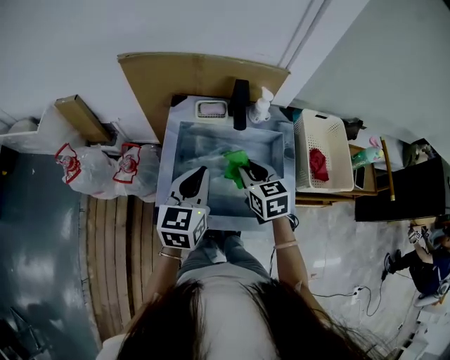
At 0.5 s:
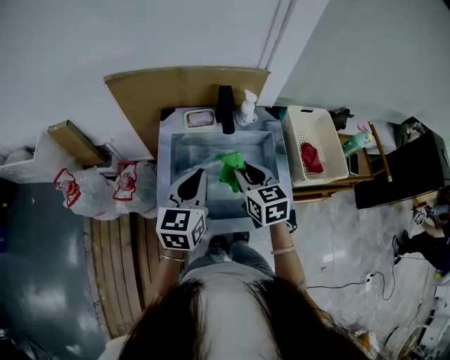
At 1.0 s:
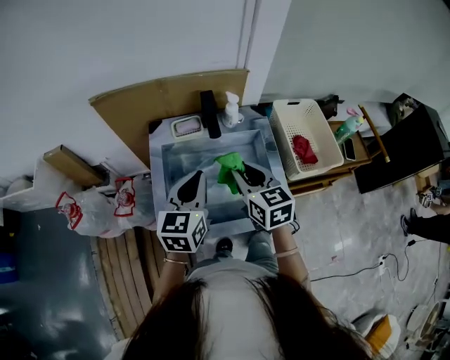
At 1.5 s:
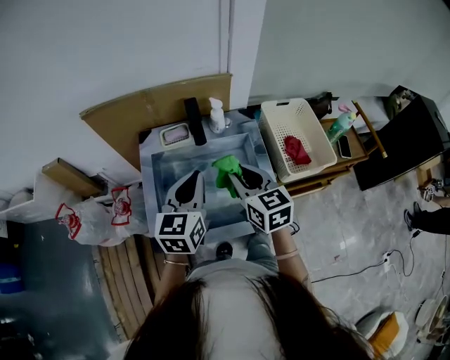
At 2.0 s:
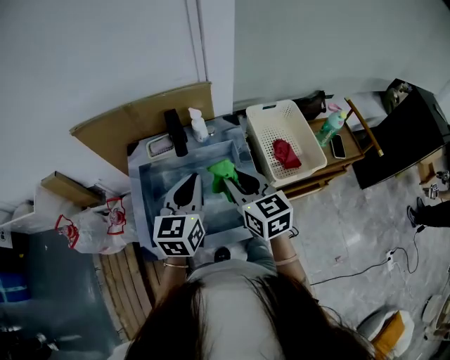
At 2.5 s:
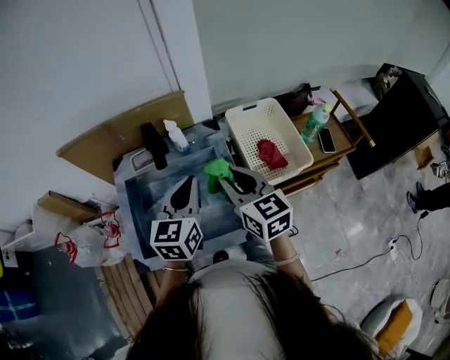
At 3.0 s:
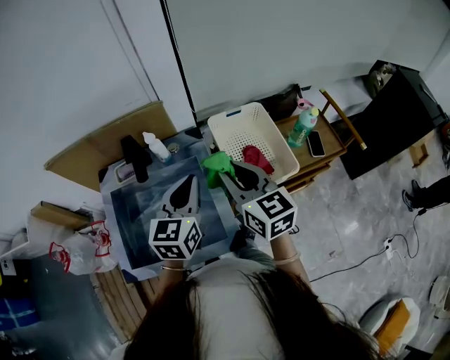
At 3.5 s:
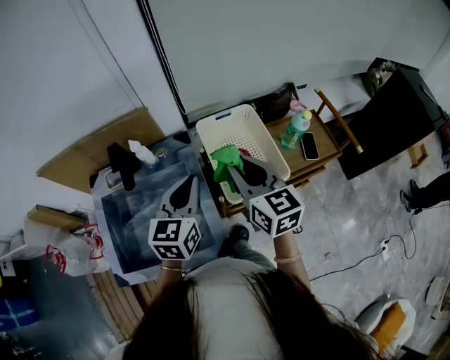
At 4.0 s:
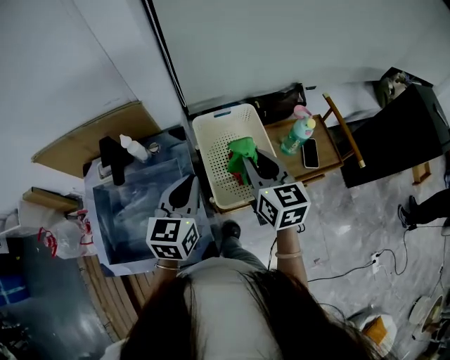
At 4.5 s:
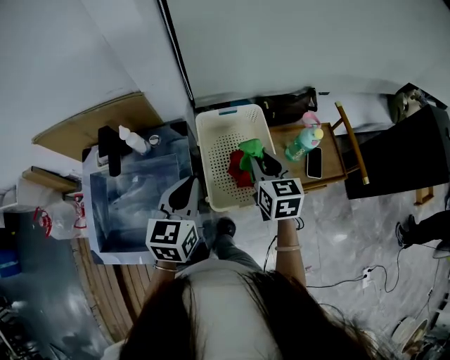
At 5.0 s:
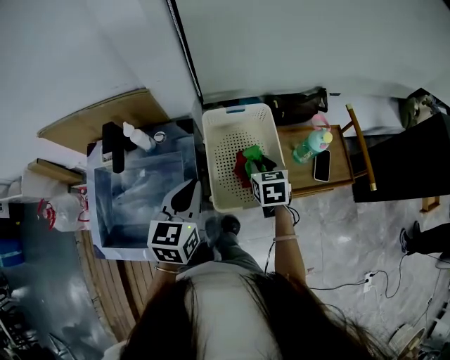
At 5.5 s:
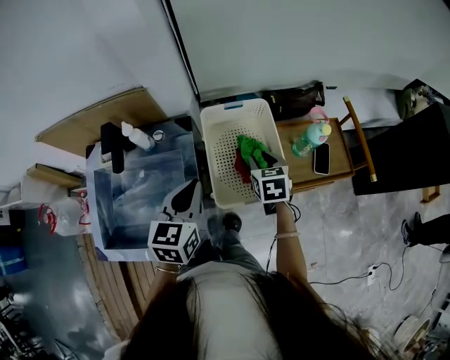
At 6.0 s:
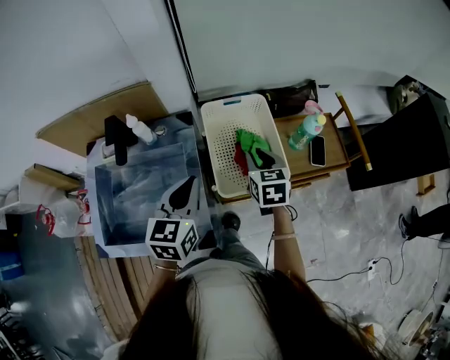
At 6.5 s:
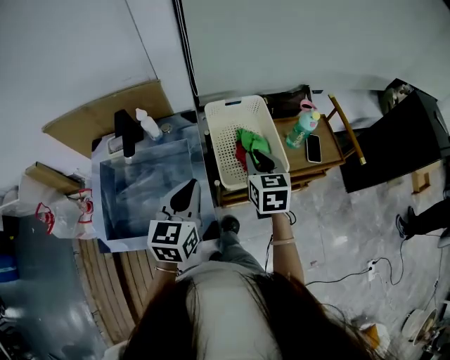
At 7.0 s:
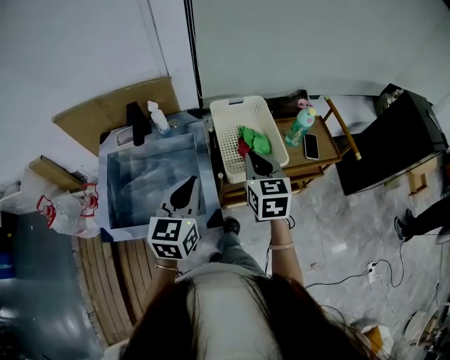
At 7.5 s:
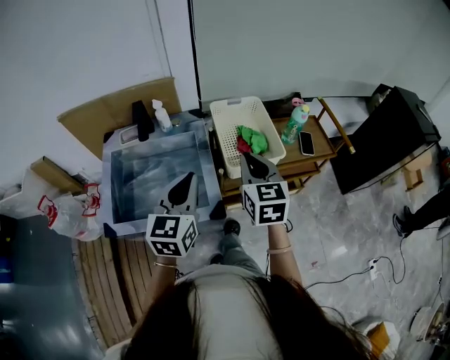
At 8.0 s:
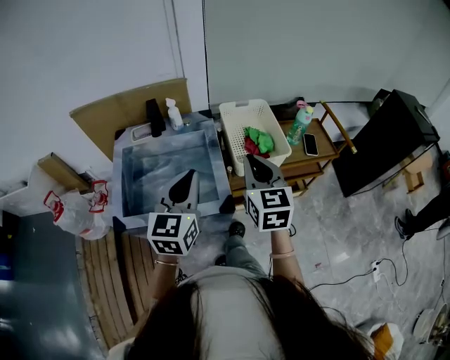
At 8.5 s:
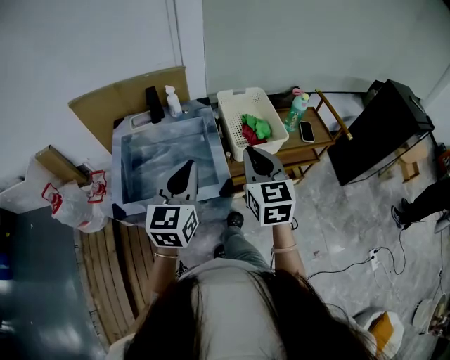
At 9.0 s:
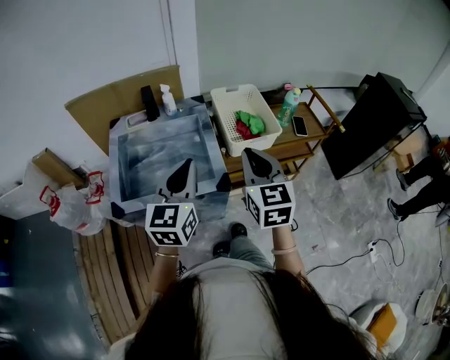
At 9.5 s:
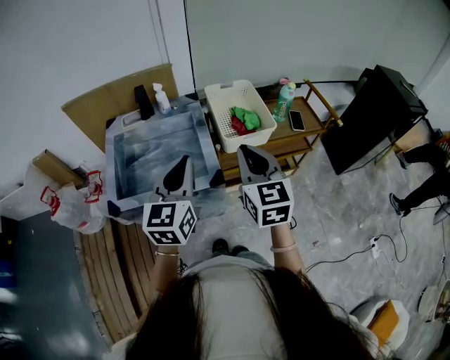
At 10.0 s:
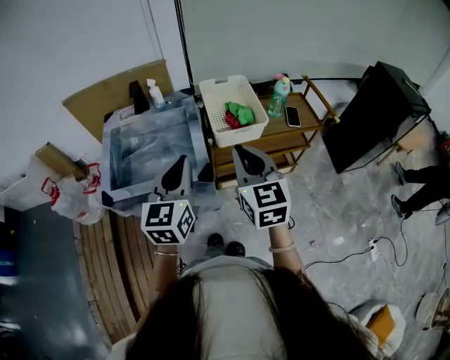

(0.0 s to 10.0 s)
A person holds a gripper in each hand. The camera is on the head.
0.0 s - 2.0 s: The left gripper is displaced to the right by approximately 15 cm. The right gripper heads to the right and upward, covering about 15 cm, and changes its angle by some 20 degrees.
2.0 s - 4.0 s: The left gripper travels to the right by about 20 cm; the right gripper is displaced to the right and forward by some 30 cm.
4.0 s - 6.0 s: The right gripper is displaced downward by some 10 cm, and swivels roughly 20 degrees.
6.0 s - 8.0 s: The two grippers go some 25 cm backward, upward and to the left. The right gripper turns by some 20 degrees.
8.0 s - 10.0 s: Both grippers move backward and to the right, some 10 cm.

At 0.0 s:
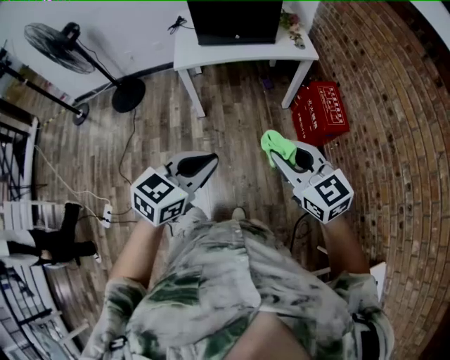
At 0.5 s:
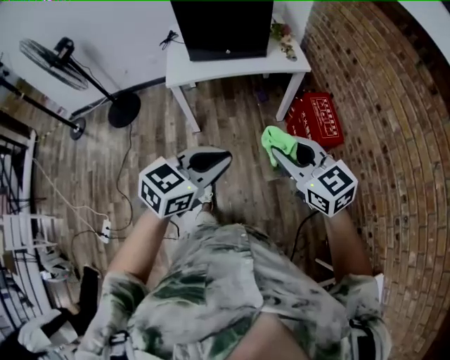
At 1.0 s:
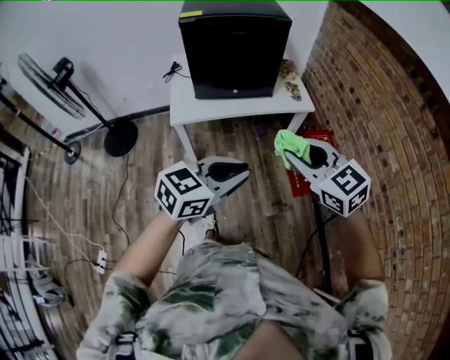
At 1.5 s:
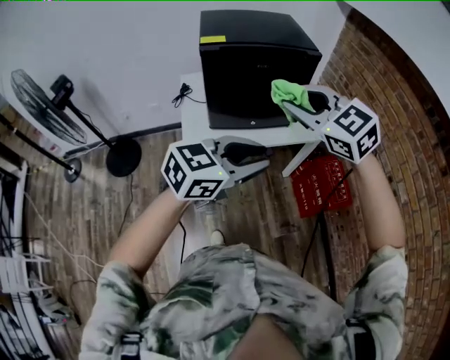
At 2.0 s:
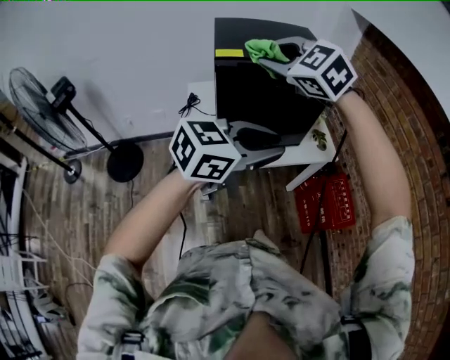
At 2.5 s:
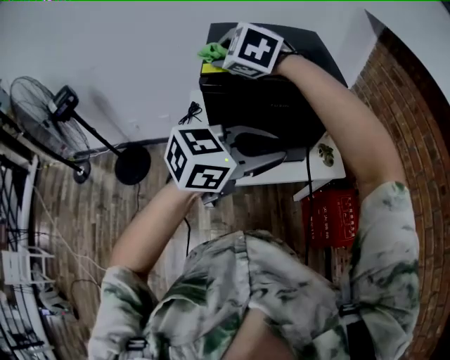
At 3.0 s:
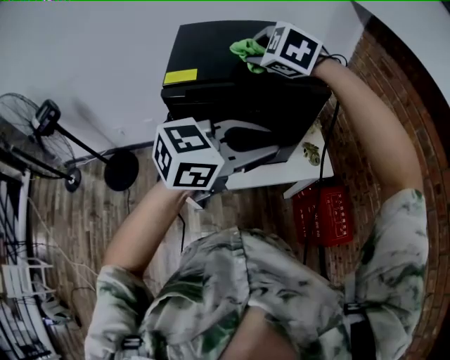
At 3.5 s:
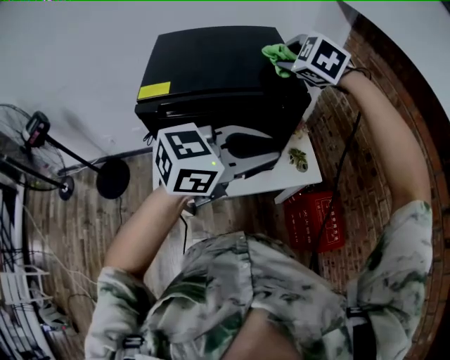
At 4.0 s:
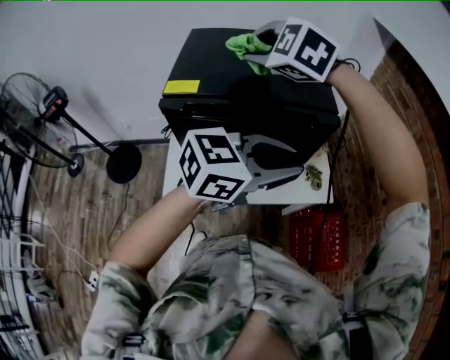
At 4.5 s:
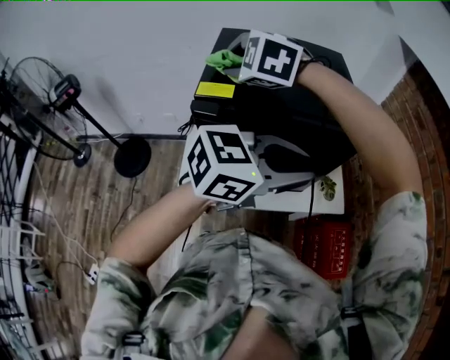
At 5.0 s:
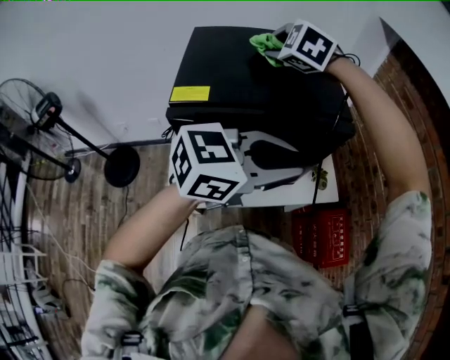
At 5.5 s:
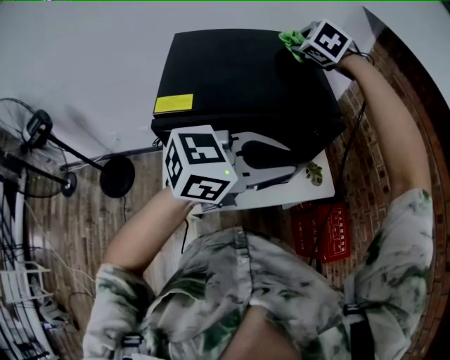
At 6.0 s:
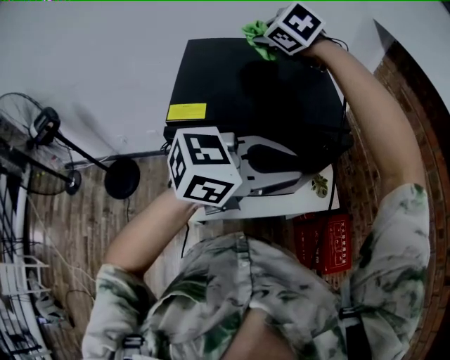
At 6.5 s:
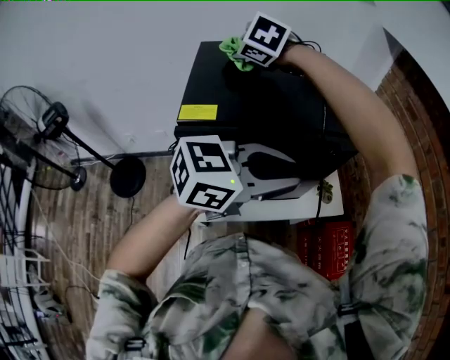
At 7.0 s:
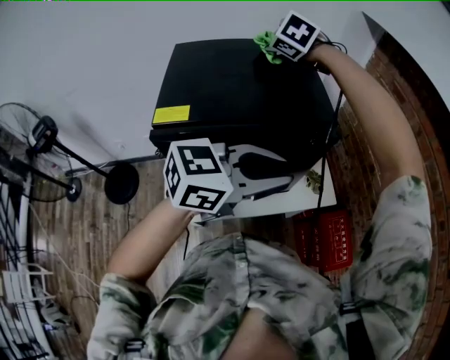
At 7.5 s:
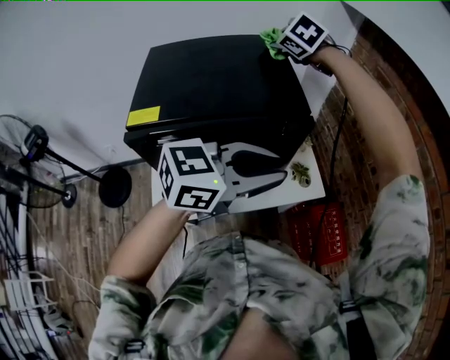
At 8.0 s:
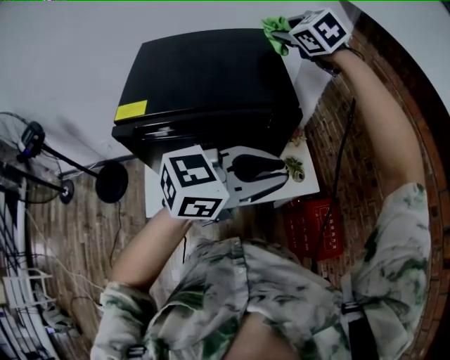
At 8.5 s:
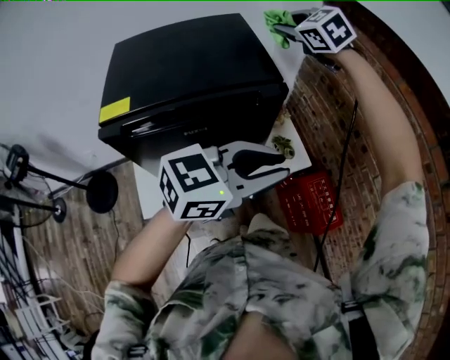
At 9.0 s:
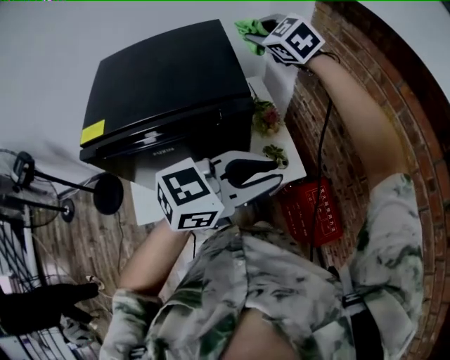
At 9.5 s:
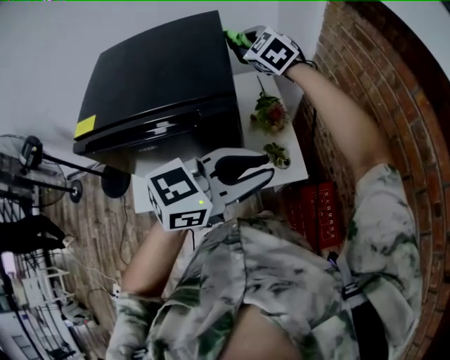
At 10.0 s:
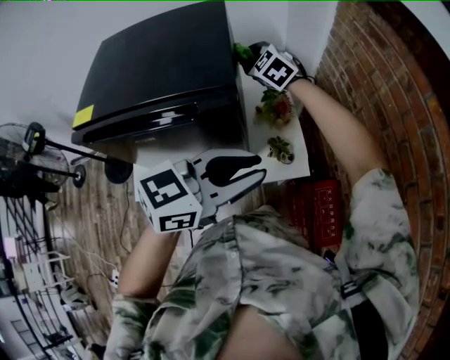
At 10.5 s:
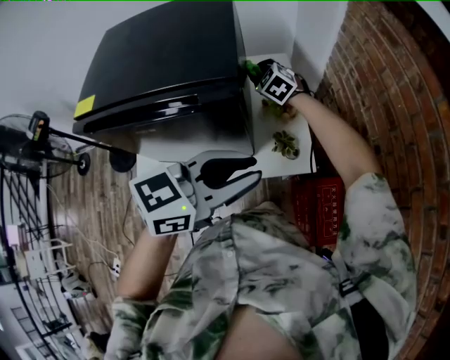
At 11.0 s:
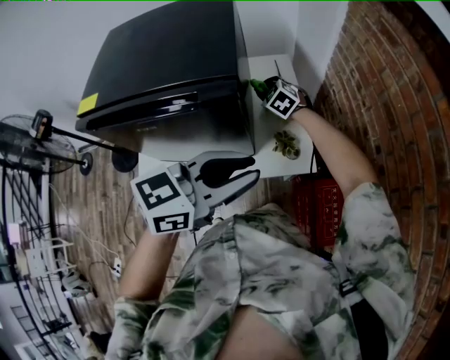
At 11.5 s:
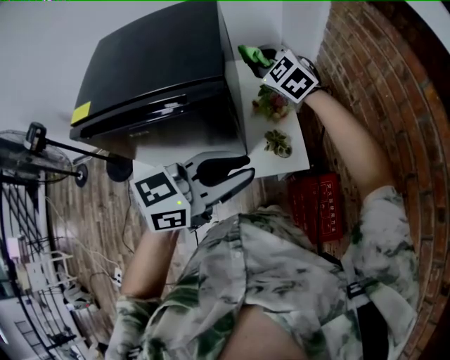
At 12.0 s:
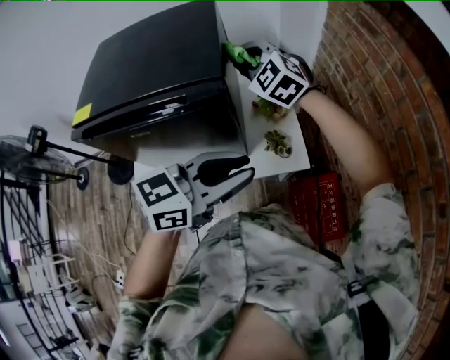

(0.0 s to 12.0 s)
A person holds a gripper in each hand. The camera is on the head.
0.0 s - 2.0 s: The two grippers travel together, forward and to the left, some 50 cm. The right gripper heads upward, covering some 25 cm, and rotates approximately 40 degrees; the left gripper changes its angle by approximately 30 degrees.
2.0 s - 4.0 s: The left gripper heads forward and to the right, covering roughly 25 cm. Meanwhile the right gripper heads forward, covering roughly 20 cm.
4.0 s - 6.0 s: The left gripper travels to the left by about 5 cm. The right gripper goes forward and backward, about 25 cm each way, reversing 2 times, and changes its angle by some 20 degrees.
6.0 s - 8.0 s: The right gripper heads to the right and forward, covering approximately 20 cm. Meanwhile the left gripper moves to the right, about 10 cm.
8.0 s - 10.0 s: The left gripper moves to the right and forward, approximately 10 cm. Meanwhile the right gripper goes some 20 cm downward.
10.0 s - 12.0 s: The right gripper is displaced backward by about 10 cm, and reaches about 15 cm downward, then returns.

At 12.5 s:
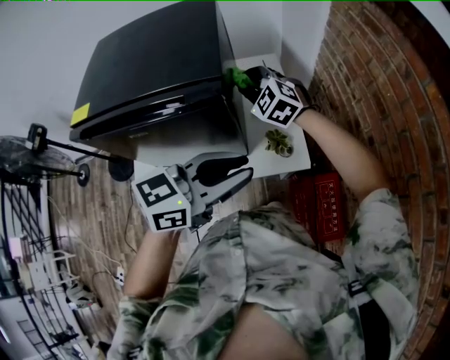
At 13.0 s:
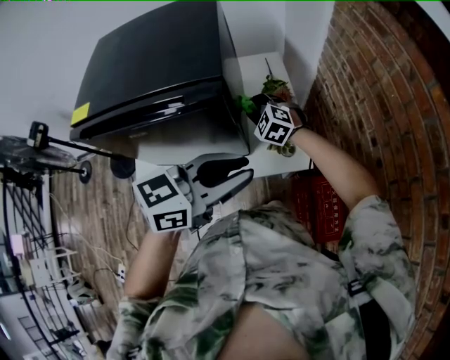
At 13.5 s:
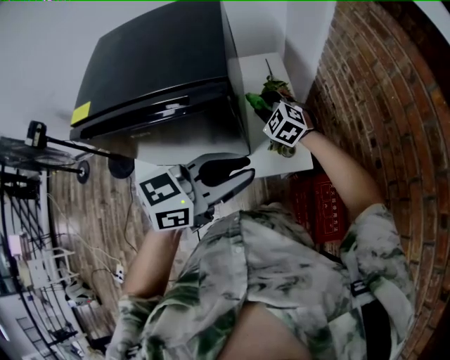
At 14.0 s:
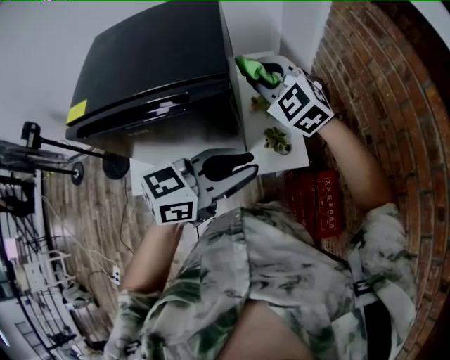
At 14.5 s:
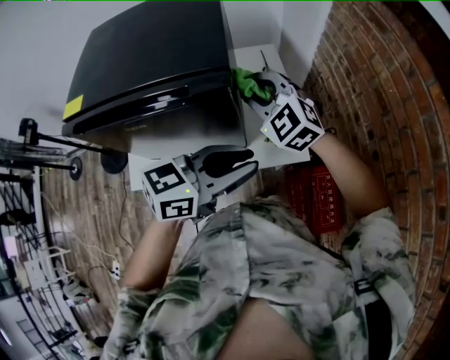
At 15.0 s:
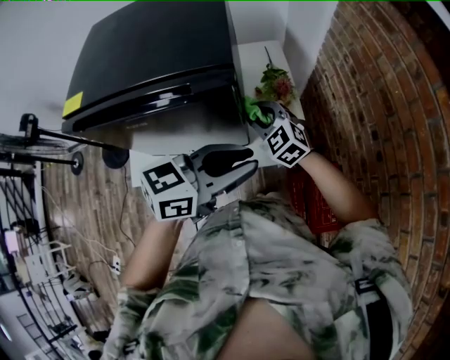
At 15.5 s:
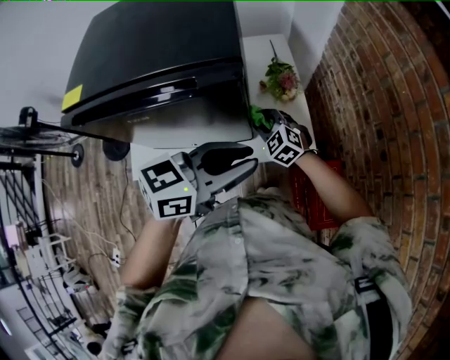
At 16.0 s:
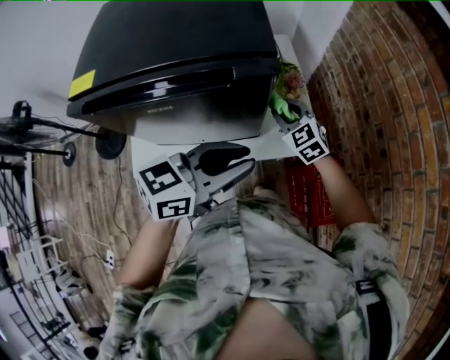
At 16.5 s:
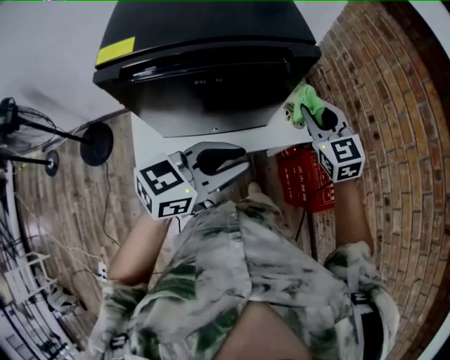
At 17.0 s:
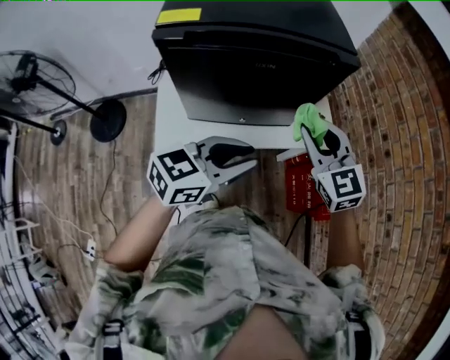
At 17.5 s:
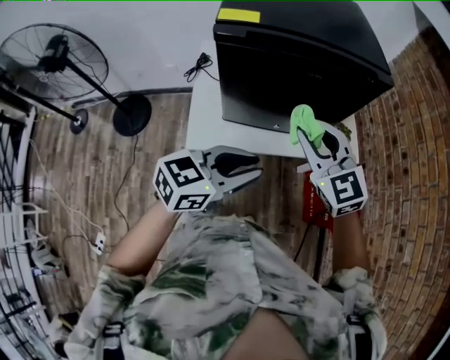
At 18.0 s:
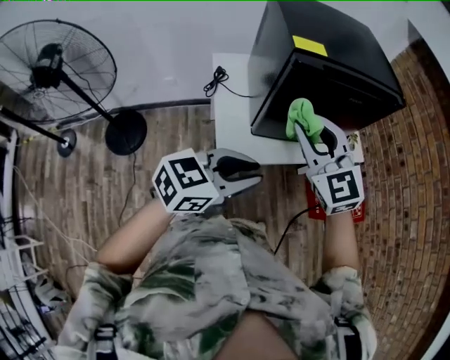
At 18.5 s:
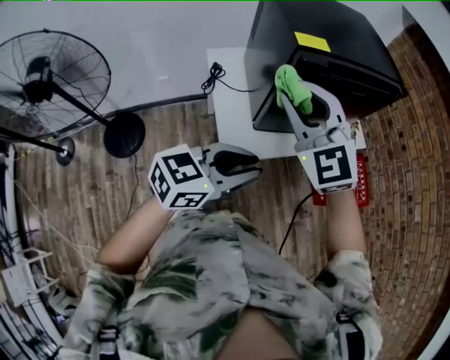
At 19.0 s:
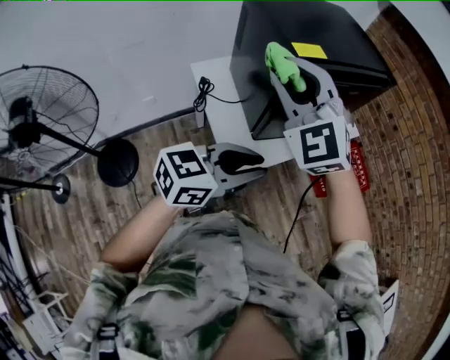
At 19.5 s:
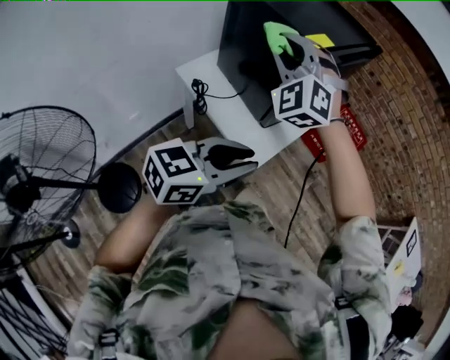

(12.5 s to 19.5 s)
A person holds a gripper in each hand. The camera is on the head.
12.5 s - 14.5 s: The right gripper swings up and down, approximately 20 cm each way, with 2 reversals.
14.5 s - 16.0 s: The left gripper moves to the left, roughly 5 cm. The right gripper travels downward by roughly 15 cm, and changes its angle by roughly 20 degrees.
16.0 s - 17.5 s: The left gripper heads backward and to the left, covering roughly 25 cm; the right gripper moves backward, to the left and upward, roughly 35 cm.
17.5 s - 19.5 s: The left gripper moves about 40 cm, and turns by roughly 40 degrees; the right gripper changes place by some 40 cm, and rotates some 70 degrees.
